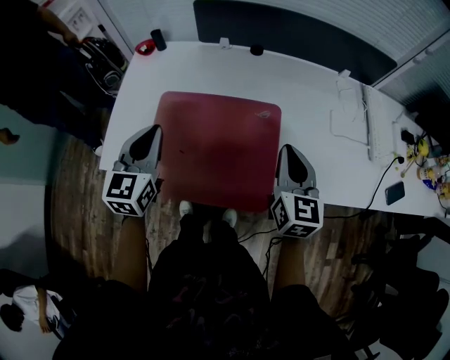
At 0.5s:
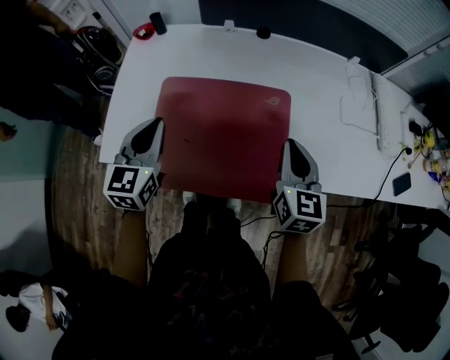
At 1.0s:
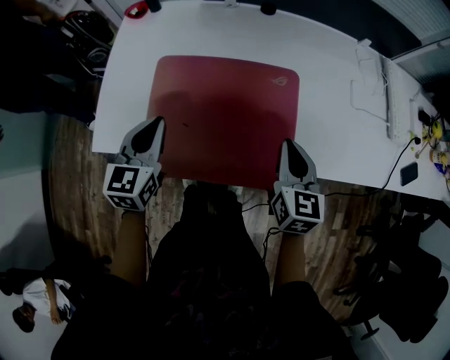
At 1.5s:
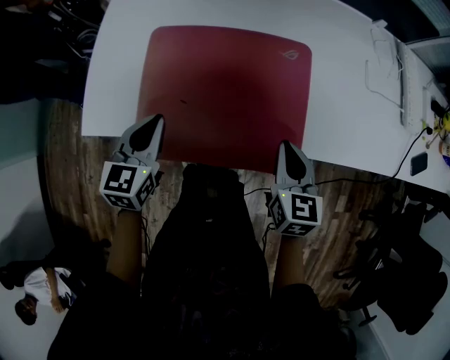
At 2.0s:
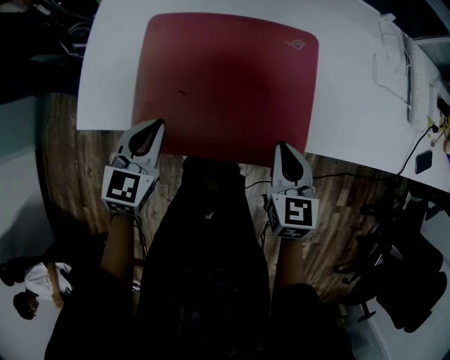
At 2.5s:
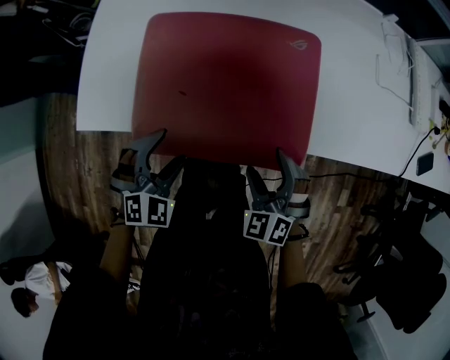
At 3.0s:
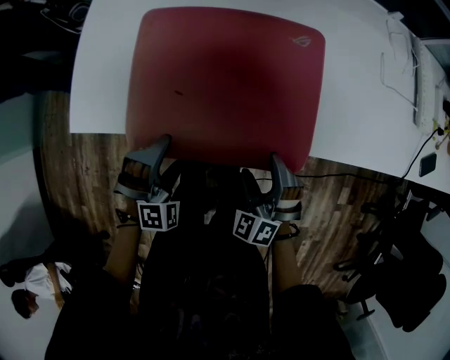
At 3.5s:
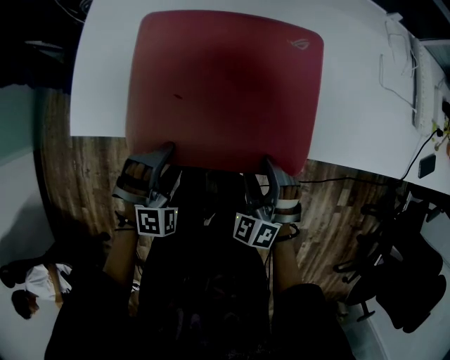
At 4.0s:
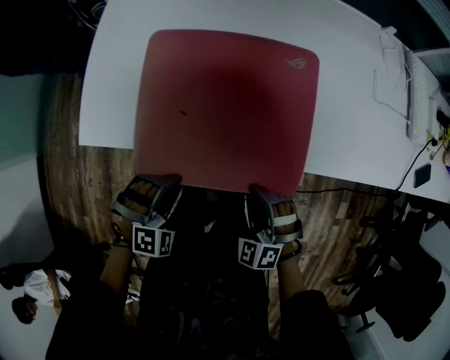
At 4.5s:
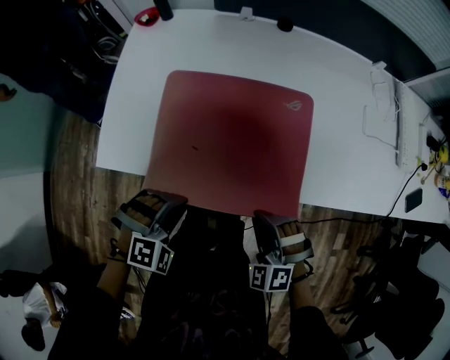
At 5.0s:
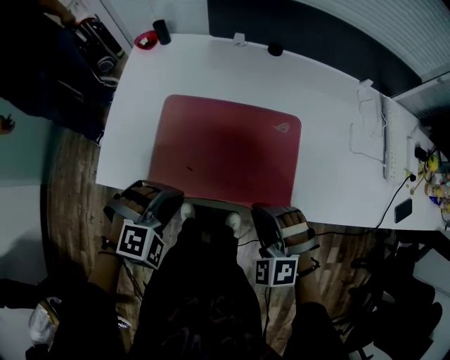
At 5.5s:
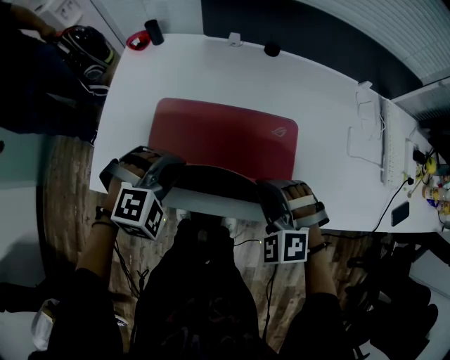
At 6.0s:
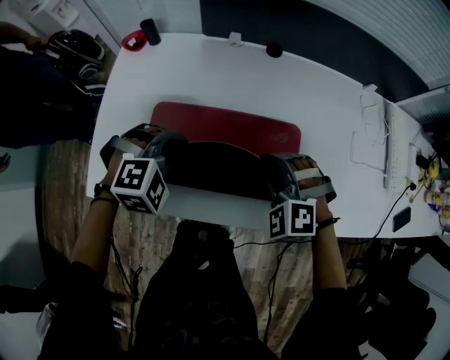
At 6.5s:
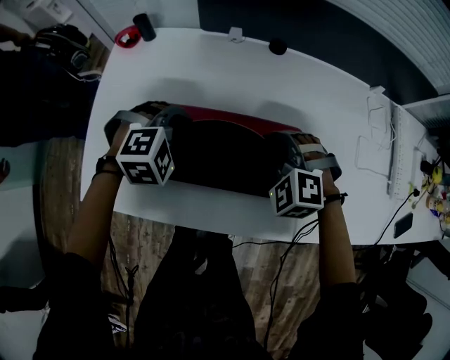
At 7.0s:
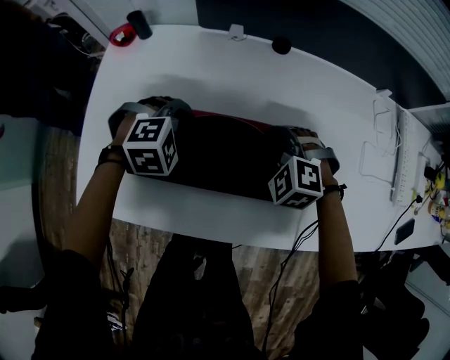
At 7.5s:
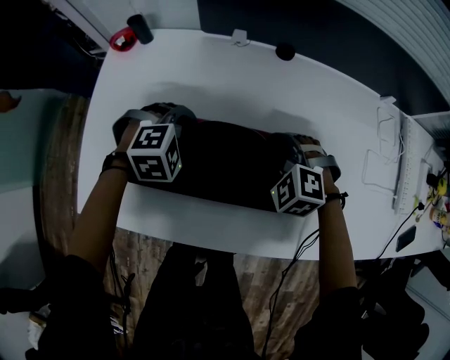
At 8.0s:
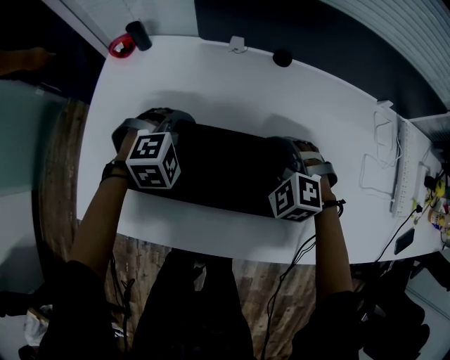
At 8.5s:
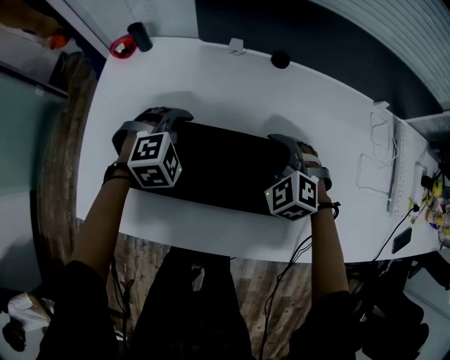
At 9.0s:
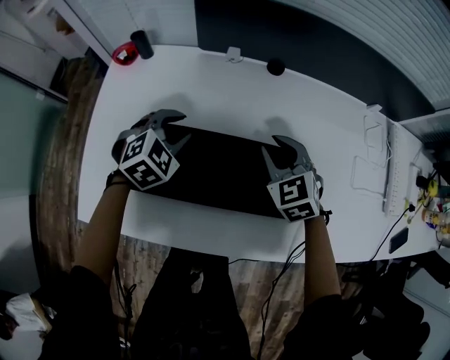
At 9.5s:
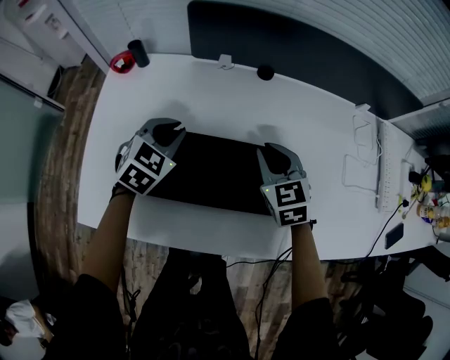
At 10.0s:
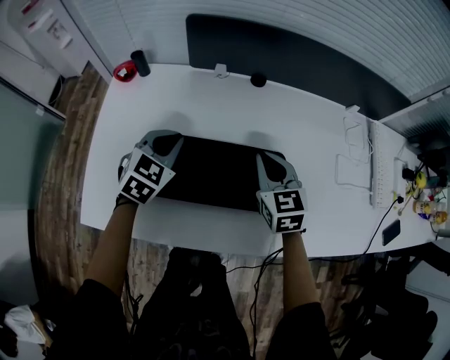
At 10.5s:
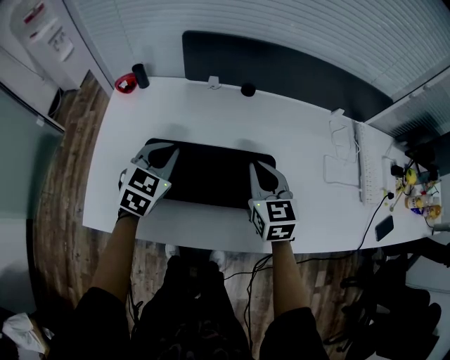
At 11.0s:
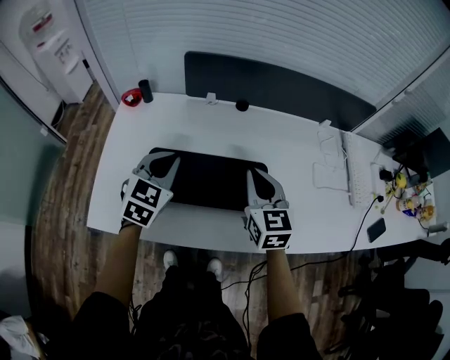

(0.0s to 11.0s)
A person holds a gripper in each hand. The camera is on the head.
0.0s - 2.0s: The left gripper shifts approximately 20 cm downward, and turns by approximately 20 degrees, while the right gripper goes some 20 cm downward and backward, and changes its angle by some 20 degrees.
2.0s - 3.5s: The grippers both shift downward and backward by roughly 10 cm. The left gripper rotates around the line of its fingers by about 60 degrees, clockwise from behind, and opens up; the right gripper rotates around the line of its fingers by roughly 60 degrees, counterclockwise from behind, and opens.
3.5s - 5.5s: The grippers both shift forward and upward by roughly 20 cm. The right gripper changes its angle by about 20 degrees, and closes up. Meanwhile the left gripper closes.
5.5s - 7.5s: Both grippers move forward and downward, approximately 20 cm.
7.5s - 9.0s: The left gripper changes its angle by some 30 degrees. The right gripper goes about 5 cm upward, and turns by approximately 40 degrees.
9.0s - 11.0s: The two grippers go some 20 cm upward and backward. The left gripper rotates roughly 30 degrees. The right gripper turns by about 40 degrees.

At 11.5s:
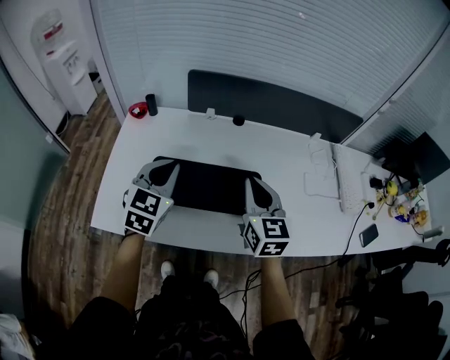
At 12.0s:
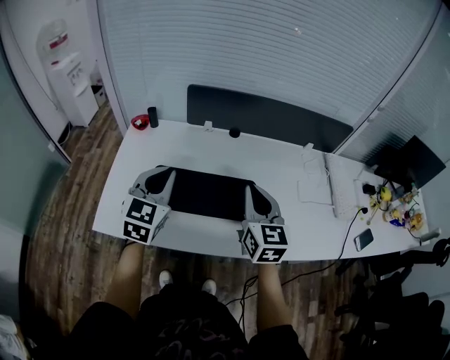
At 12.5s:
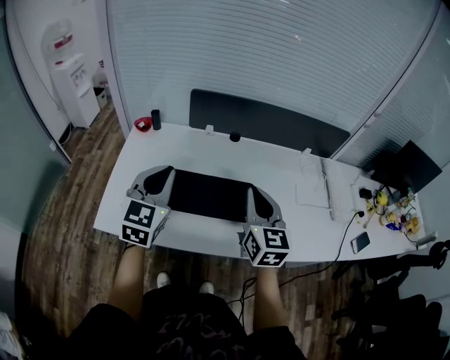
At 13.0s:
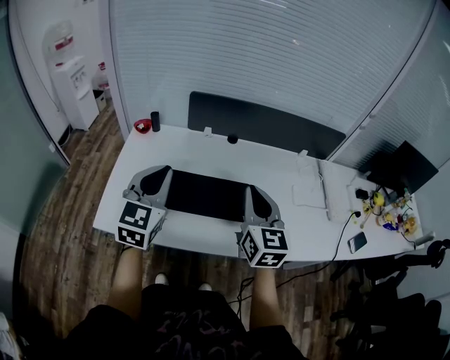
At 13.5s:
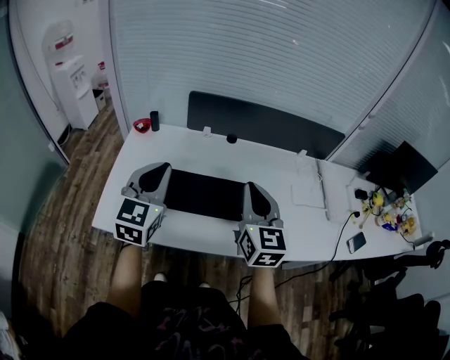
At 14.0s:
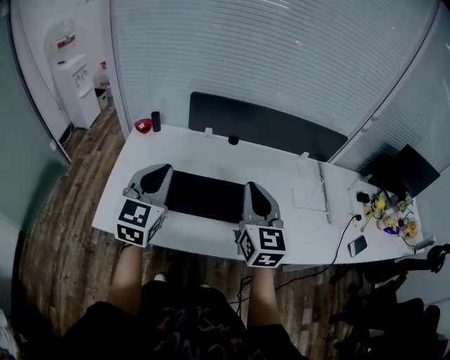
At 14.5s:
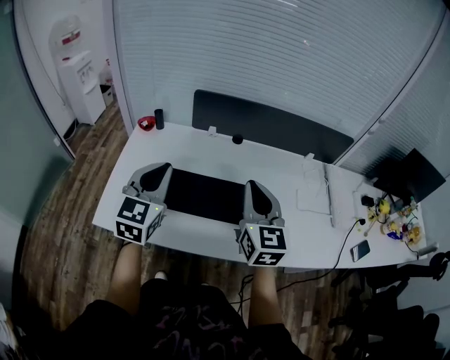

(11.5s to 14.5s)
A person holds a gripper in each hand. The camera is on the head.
11.5s - 13.0s: The grippers both shift upward and backward by some 10 cm.
13.0s - 14.5s: The grippers stay close to where they were, moving slightly.

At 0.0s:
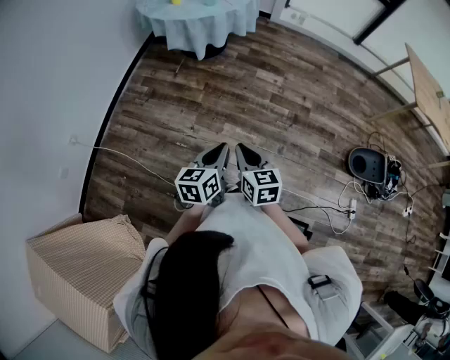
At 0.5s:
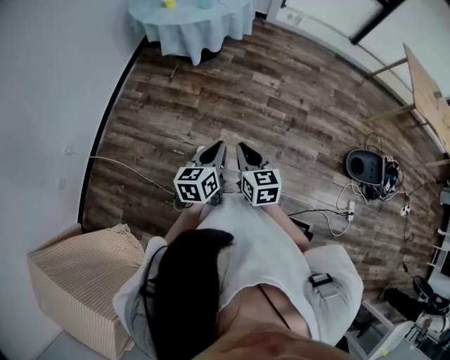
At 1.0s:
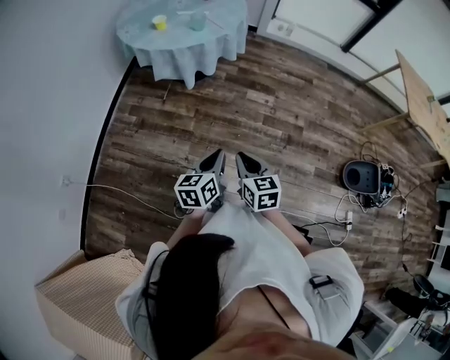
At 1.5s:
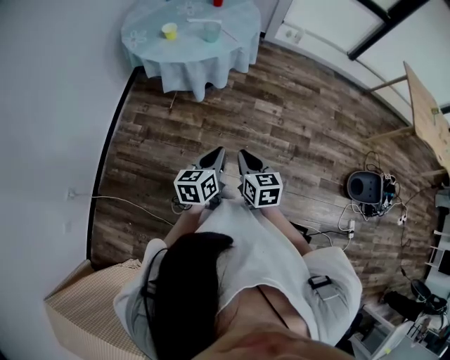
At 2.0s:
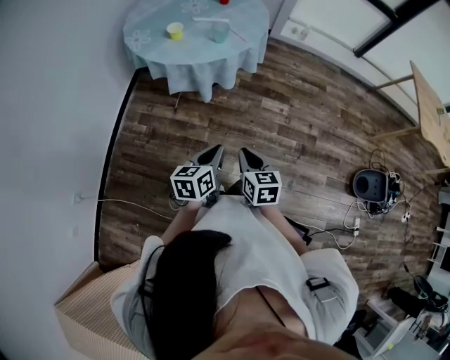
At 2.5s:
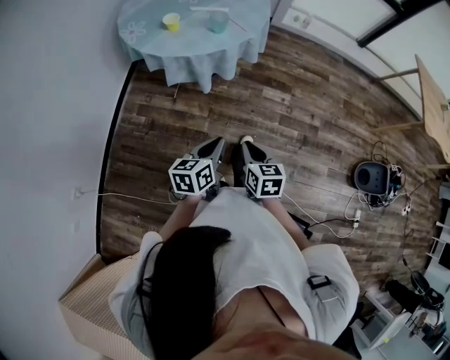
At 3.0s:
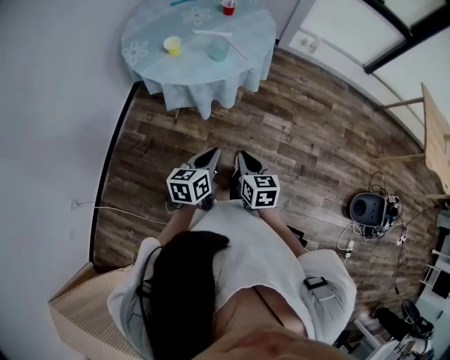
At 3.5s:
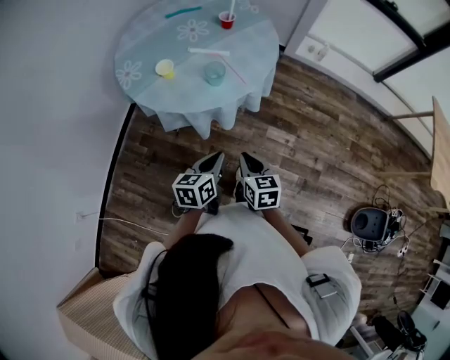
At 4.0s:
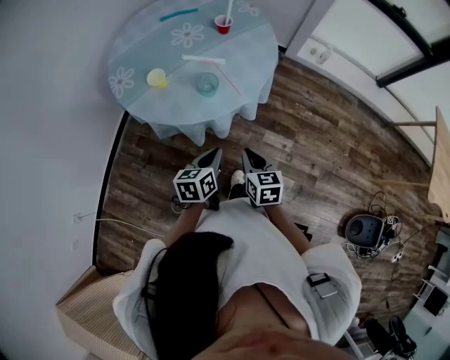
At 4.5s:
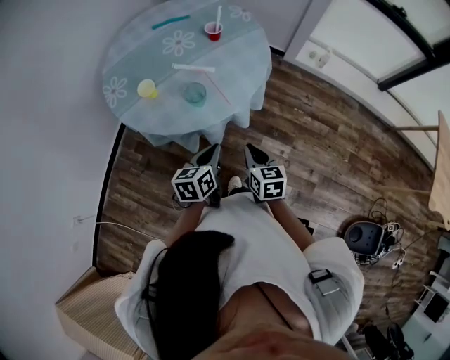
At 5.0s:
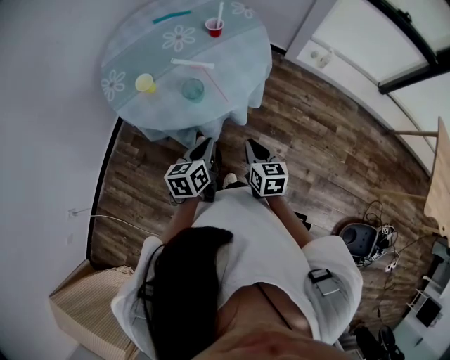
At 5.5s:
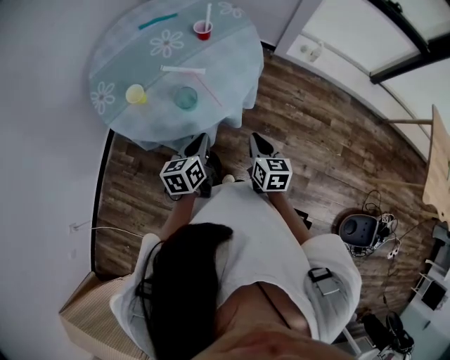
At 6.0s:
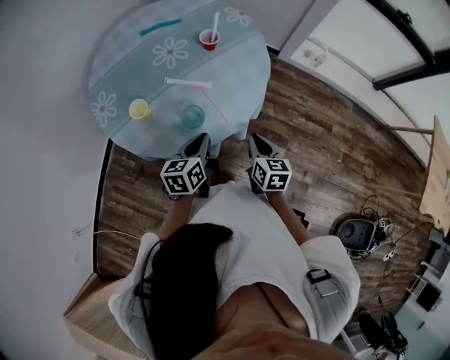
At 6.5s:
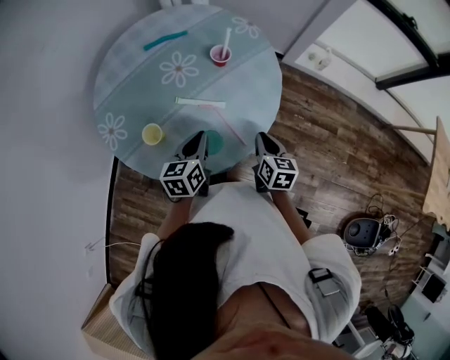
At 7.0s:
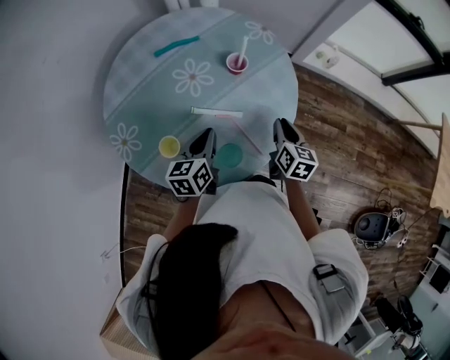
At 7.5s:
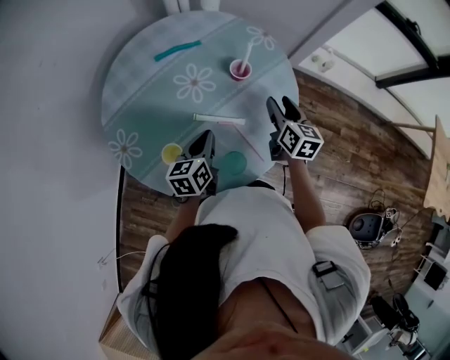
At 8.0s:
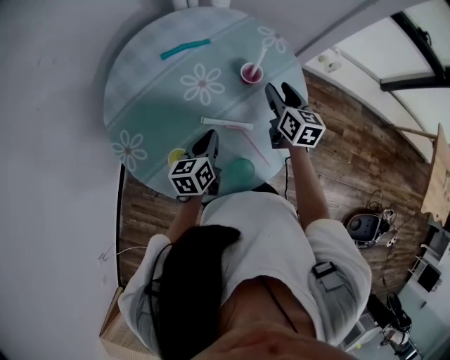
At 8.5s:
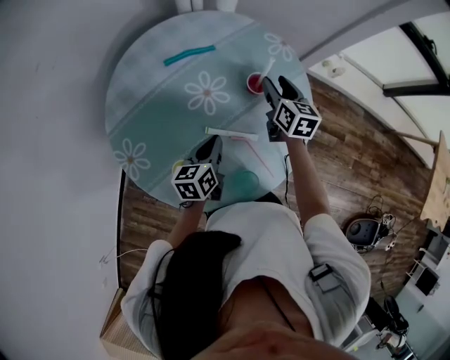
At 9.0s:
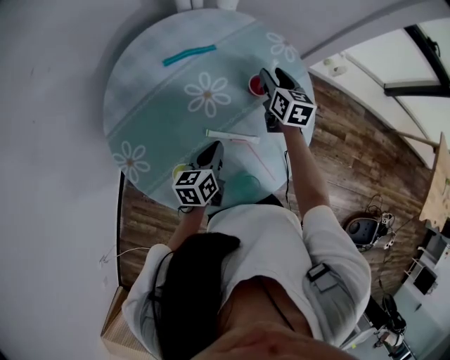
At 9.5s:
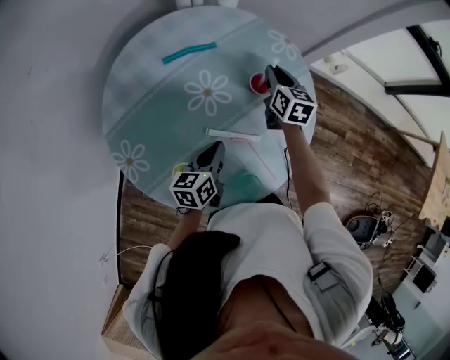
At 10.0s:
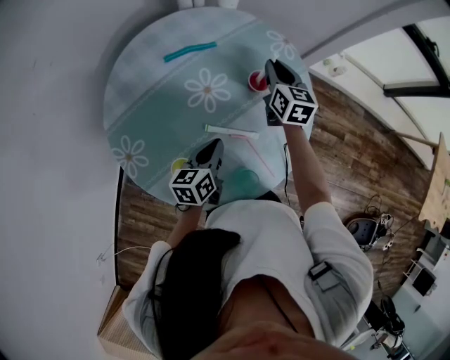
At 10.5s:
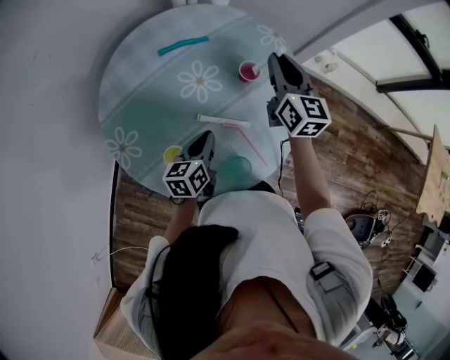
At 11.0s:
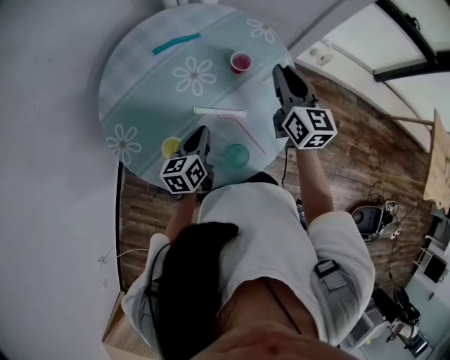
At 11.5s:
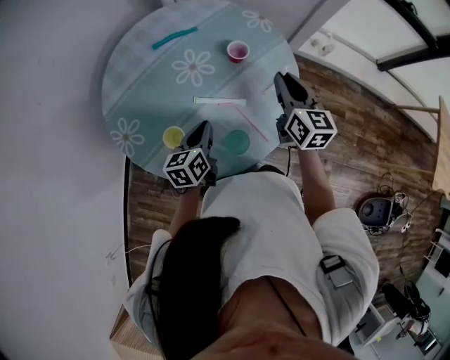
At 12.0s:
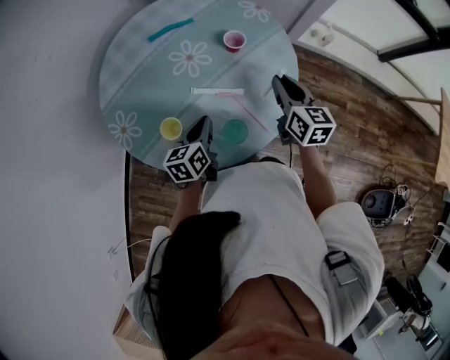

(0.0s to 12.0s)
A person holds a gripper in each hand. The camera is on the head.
0.0s - 2.0s: The two grippers go roughly 35 cm forward and to the left.
2.0s - 4.0s: The two grippers go some 30 cm forward.
4.0s - 6.0s: Both grippers travel together forward, roughly 20 cm.
6.0s - 8.0s: Both grippers move forward and to the left, about 30 cm. The right gripper opens up.
8.0s - 10.0s: The right gripper heads forward, covering roughly 10 cm, and closes its fingers.
10.0s - 12.0s: The left gripper goes roughly 10 cm backward. Meanwhile the right gripper goes roughly 25 cm backward and to the right.
